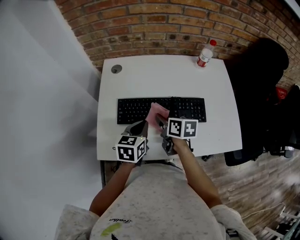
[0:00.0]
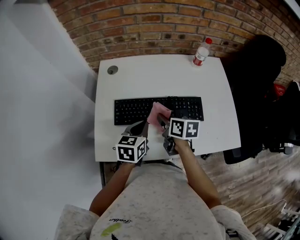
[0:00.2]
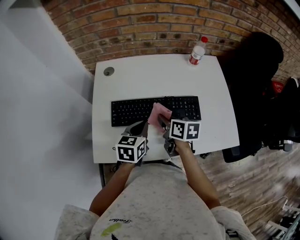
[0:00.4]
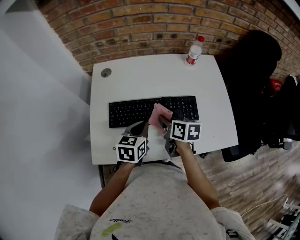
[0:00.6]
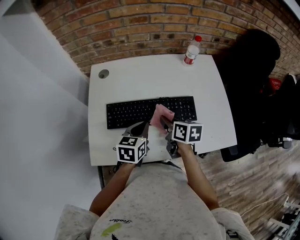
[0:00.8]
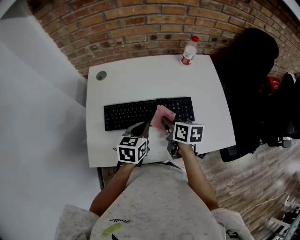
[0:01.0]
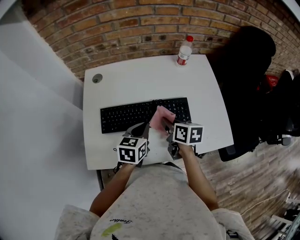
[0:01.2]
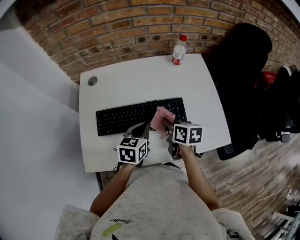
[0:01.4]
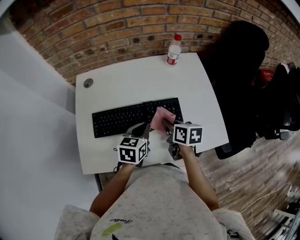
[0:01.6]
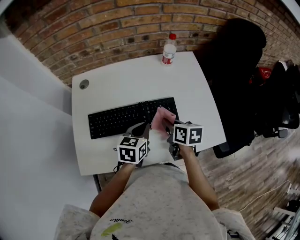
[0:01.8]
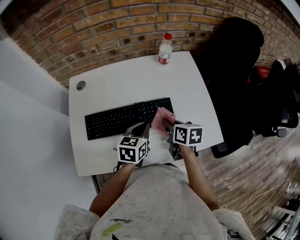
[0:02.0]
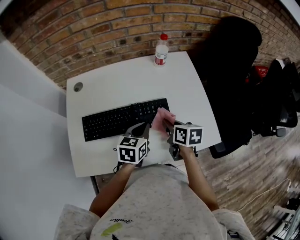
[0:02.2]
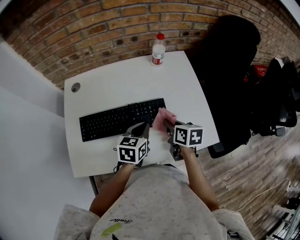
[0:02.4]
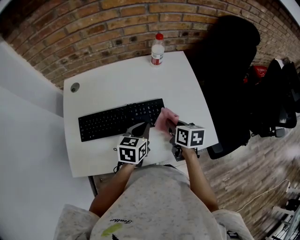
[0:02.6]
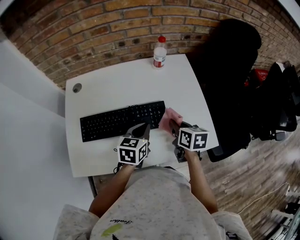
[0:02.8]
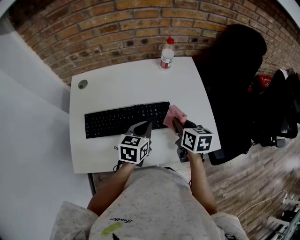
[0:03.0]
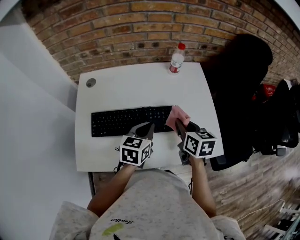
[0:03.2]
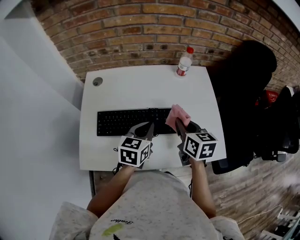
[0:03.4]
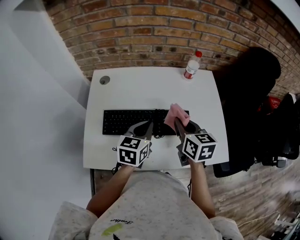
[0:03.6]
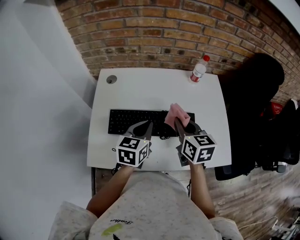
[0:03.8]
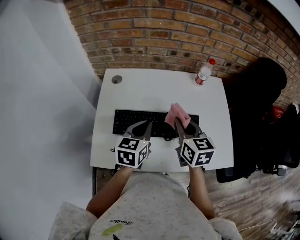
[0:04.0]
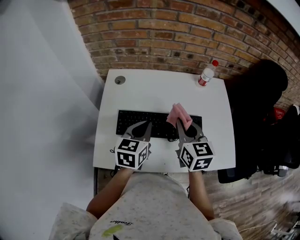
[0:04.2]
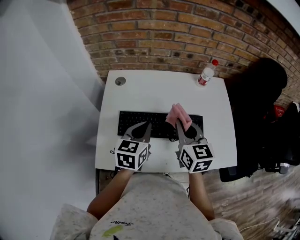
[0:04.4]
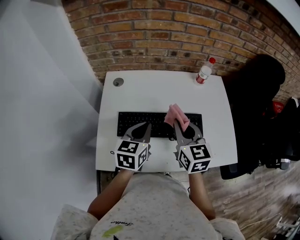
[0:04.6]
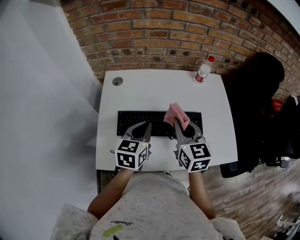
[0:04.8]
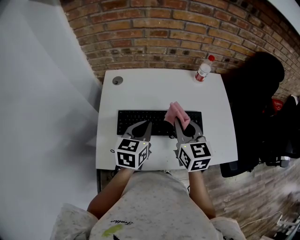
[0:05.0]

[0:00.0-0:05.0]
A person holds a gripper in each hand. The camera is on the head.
0:00.0 to 0:01.6: Both grippers move to the right, approximately 15 cm.
0:01.6 to 0:03.4: The right gripper heads upward, covering some 10 cm, and goes to the right and returns, about 10 cm each way, while the left gripper travels to the right and back again, approximately 10 cm each way.
0:03.4 to 0:05.0: The right gripper goes about 15 cm to the left and upward; the left gripper goes some 10 cm to the left.

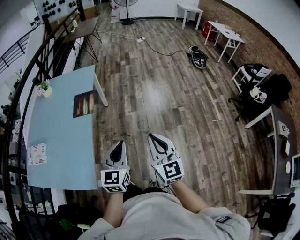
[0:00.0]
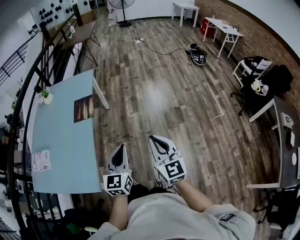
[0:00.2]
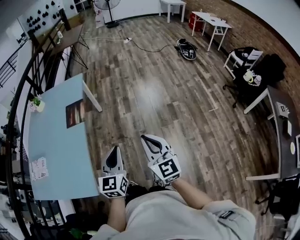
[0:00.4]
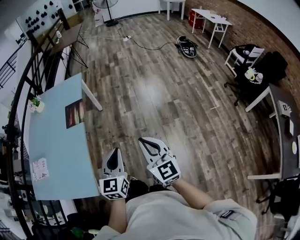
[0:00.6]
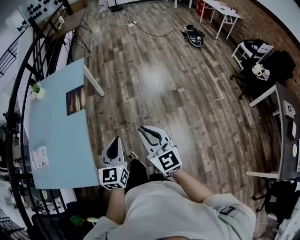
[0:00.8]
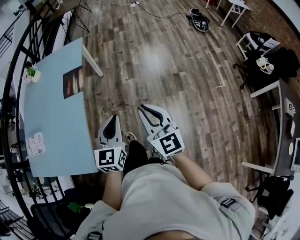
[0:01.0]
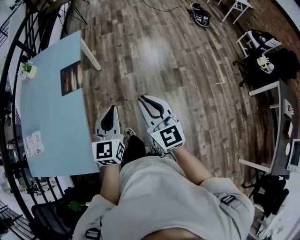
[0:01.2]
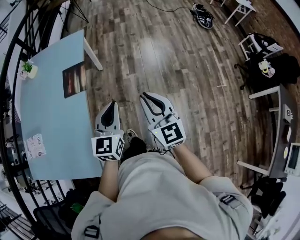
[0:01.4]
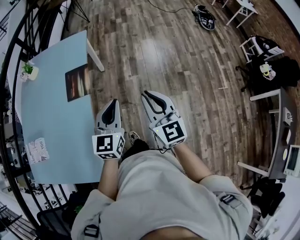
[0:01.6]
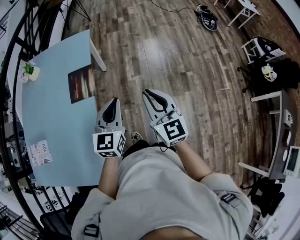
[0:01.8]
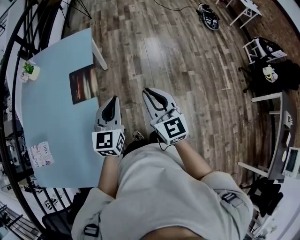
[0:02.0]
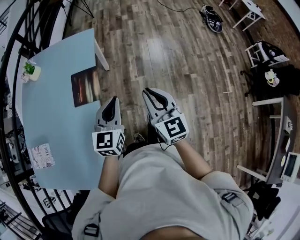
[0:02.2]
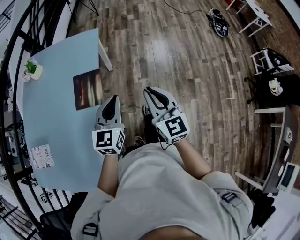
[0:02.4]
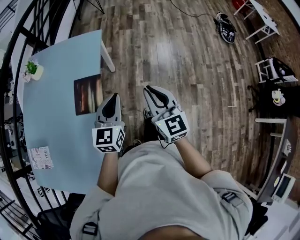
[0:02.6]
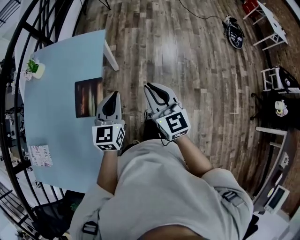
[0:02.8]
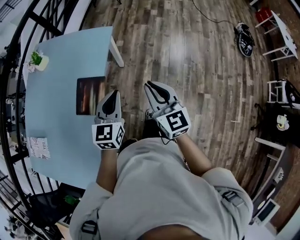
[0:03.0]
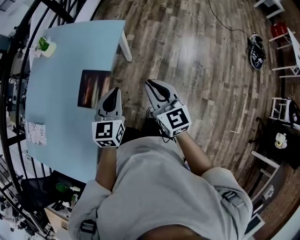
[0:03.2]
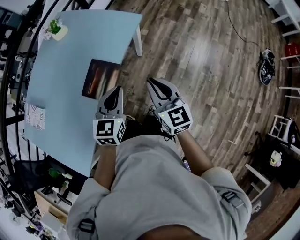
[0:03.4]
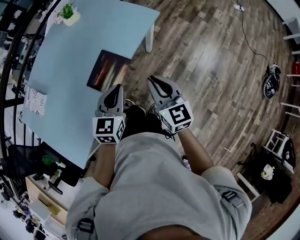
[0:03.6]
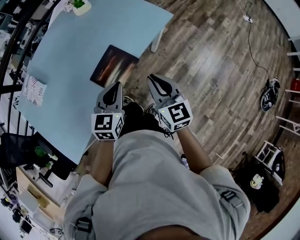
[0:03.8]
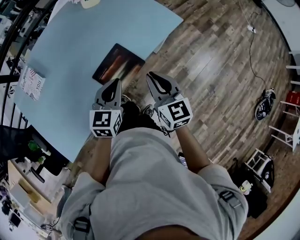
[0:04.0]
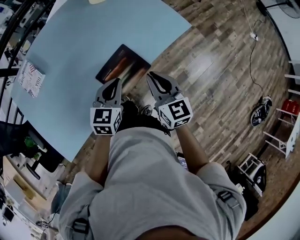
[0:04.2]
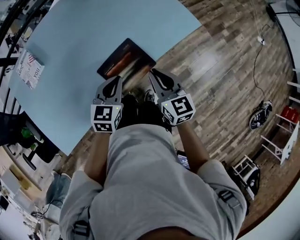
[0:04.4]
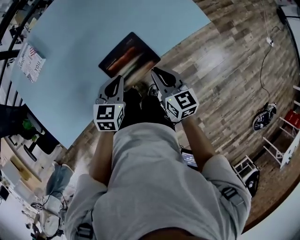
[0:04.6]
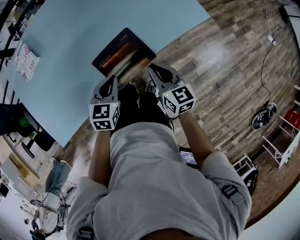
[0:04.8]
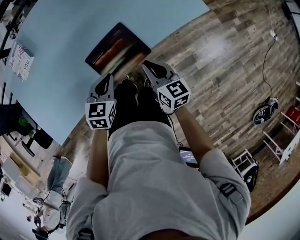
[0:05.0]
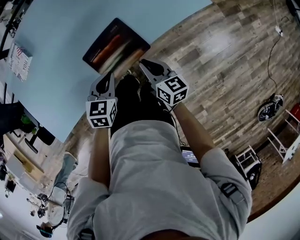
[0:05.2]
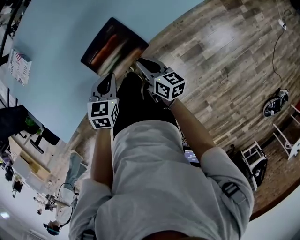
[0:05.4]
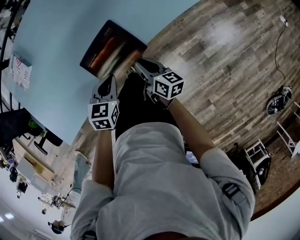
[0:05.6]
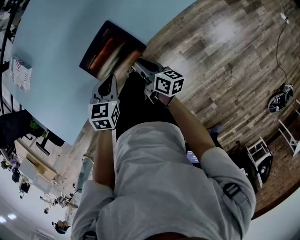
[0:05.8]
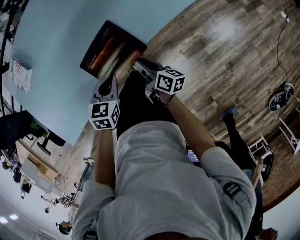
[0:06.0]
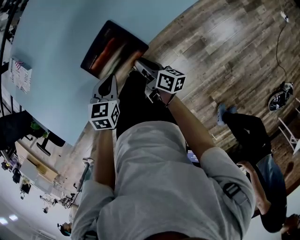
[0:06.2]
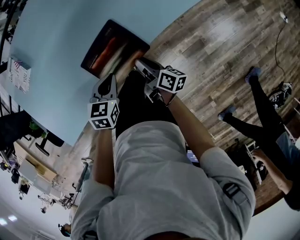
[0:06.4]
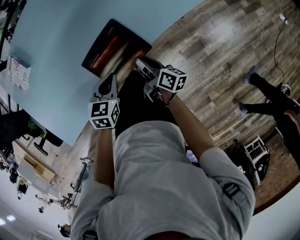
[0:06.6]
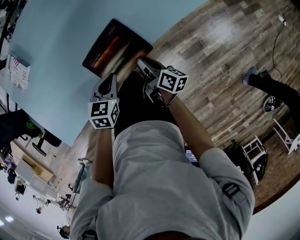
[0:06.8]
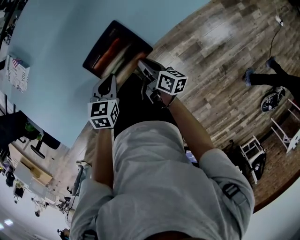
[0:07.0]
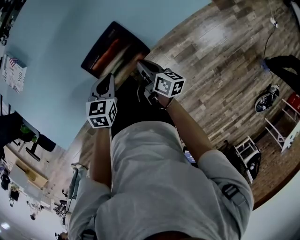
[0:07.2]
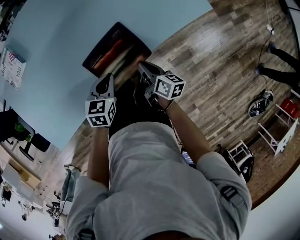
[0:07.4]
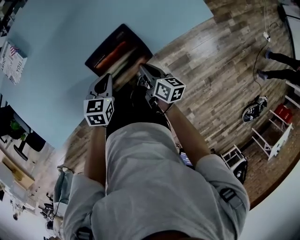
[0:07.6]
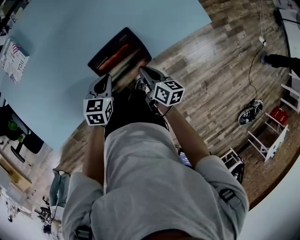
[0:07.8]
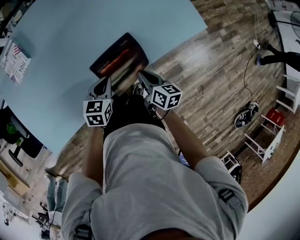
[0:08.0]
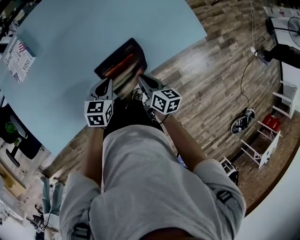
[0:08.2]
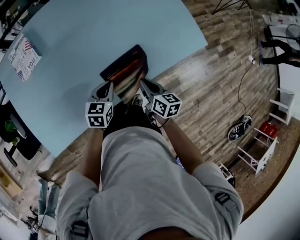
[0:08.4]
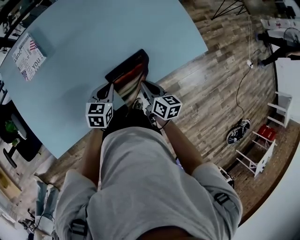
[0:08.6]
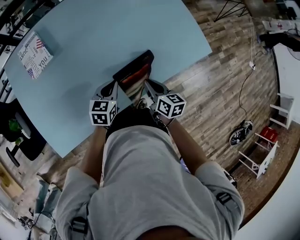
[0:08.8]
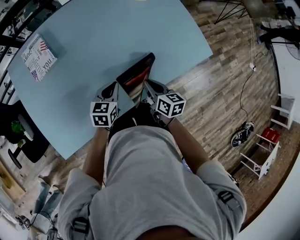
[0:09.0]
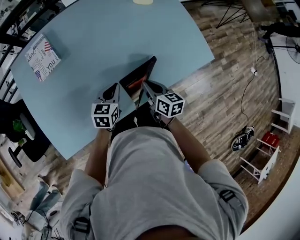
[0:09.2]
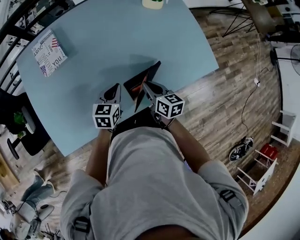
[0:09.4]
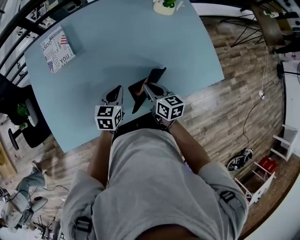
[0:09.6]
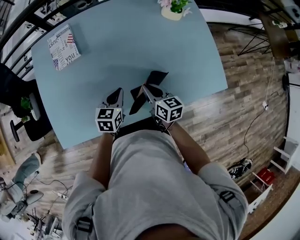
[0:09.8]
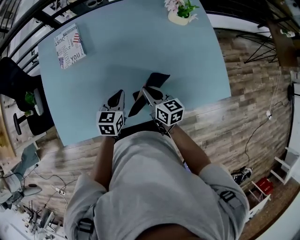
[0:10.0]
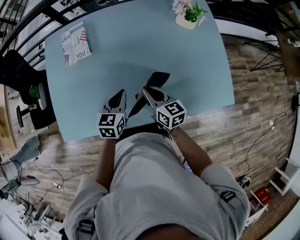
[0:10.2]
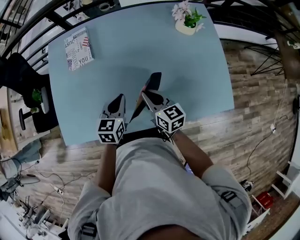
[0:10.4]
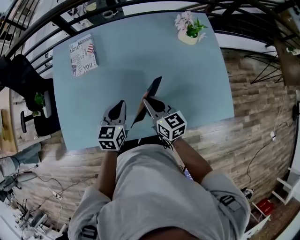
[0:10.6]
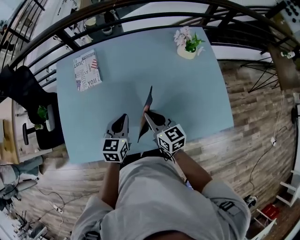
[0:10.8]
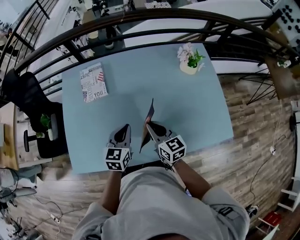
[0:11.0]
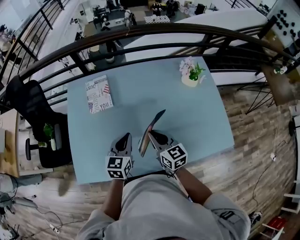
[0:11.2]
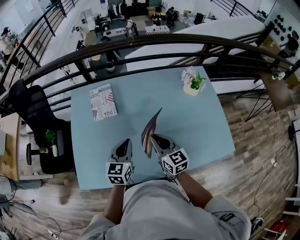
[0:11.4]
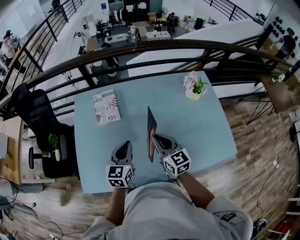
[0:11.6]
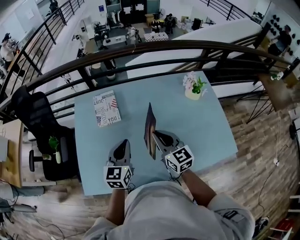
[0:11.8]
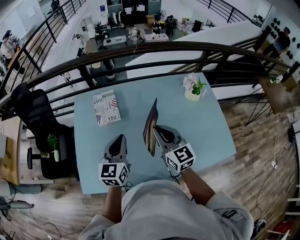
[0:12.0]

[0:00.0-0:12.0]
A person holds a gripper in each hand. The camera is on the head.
0:00.0 to 0:01.6: Both grippers travel together forward, roughly 20 cm.
0:01.6 to 0:03.0: The grippers both shift forward by about 30 cm.
0:03.0 to 0:04.4: The right gripper shifts by approximately 25 cm, and changes its angle by about 40 degrees; the left gripper ends up roughly 25 cm from where it was, and rotates about 40 degrees.
0:04.4 to 0:06.0: The left gripper moves downward, about 10 cm; the right gripper goes about 20 cm downward, and rolls clockwise, seen from behind, by approximately 50 degrees.
0:06.0 to 0:07.6: The grippers move only a little.
0:07.6 to 0:09.0: The right gripper is displaced to the left and upward by some 15 cm, while the left gripper heads to the left, upward and forward, covering about 10 cm.
0:09.0 to 0:10.4: The left gripper travels upward by about 10 cm, and swivels about 30 degrees. Meanwhile the right gripper shifts by some 15 cm, and changes its angle by some 40 degrees.
0:10.4 to 0:12.0: The two grippers go approximately 20 cm upward and to the left. The right gripper turns by about 30 degrees. Meanwhile the left gripper swivels some 20 degrees.

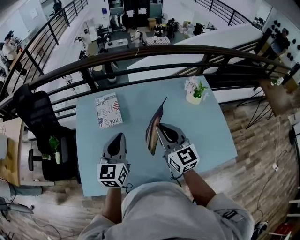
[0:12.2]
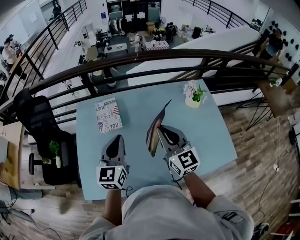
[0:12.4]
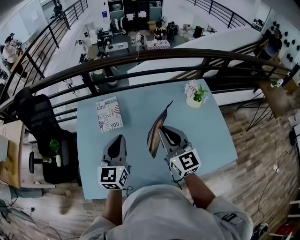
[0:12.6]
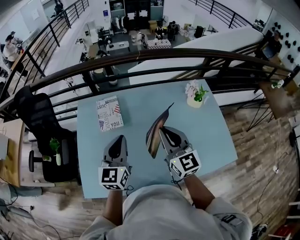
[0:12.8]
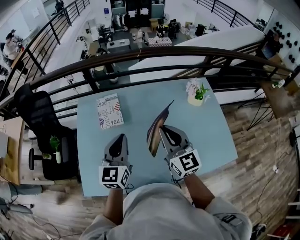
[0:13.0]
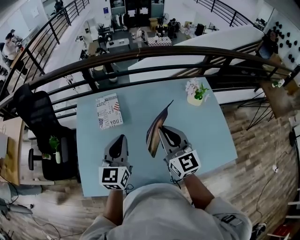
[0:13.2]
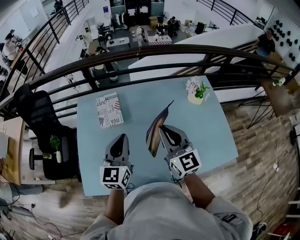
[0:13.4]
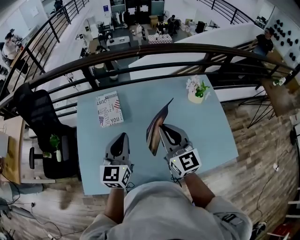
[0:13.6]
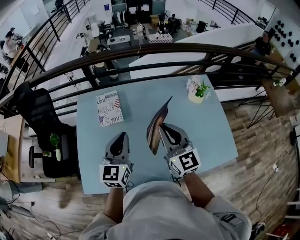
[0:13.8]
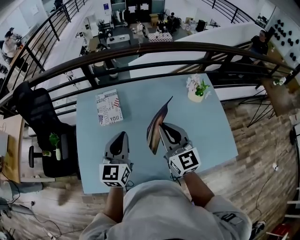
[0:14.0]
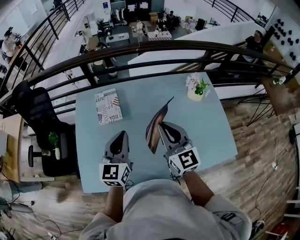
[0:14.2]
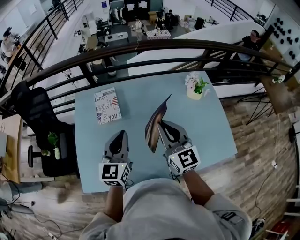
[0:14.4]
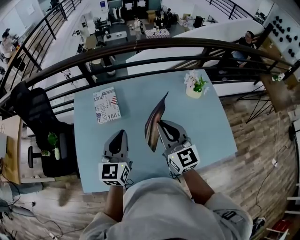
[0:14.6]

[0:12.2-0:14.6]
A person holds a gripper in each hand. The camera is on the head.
0:12.2 to 0:13.4: The grippers stay close to where they were, moving slightly.
0:13.4 to 0:14.6: Both grippers stay about where they are.

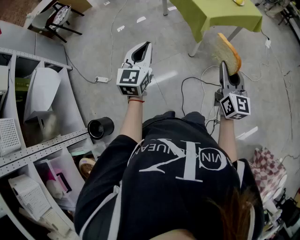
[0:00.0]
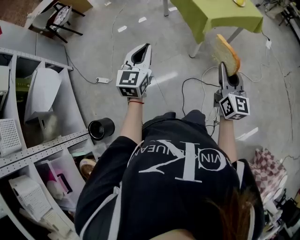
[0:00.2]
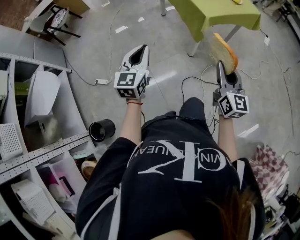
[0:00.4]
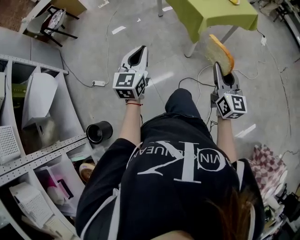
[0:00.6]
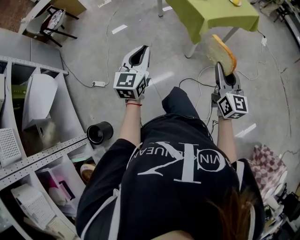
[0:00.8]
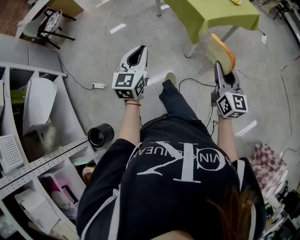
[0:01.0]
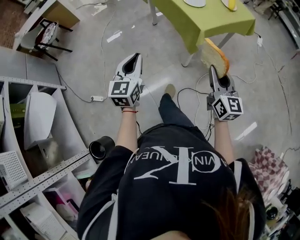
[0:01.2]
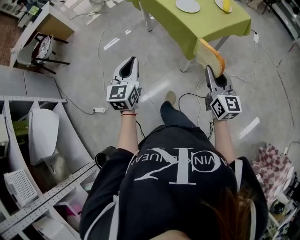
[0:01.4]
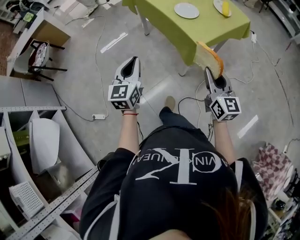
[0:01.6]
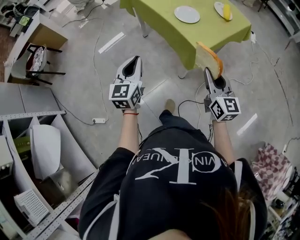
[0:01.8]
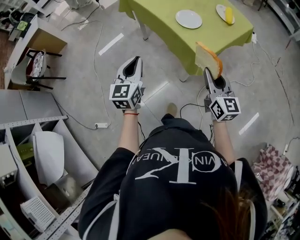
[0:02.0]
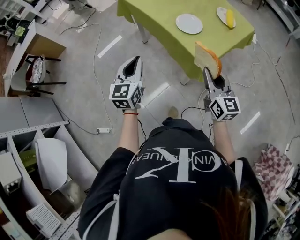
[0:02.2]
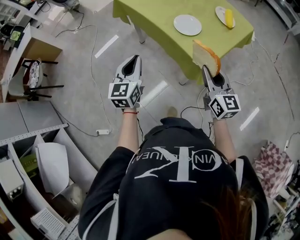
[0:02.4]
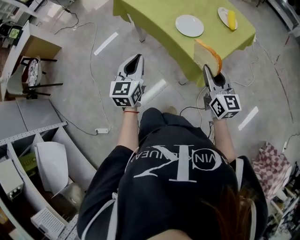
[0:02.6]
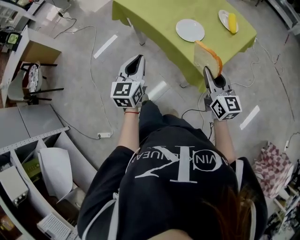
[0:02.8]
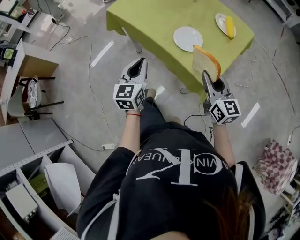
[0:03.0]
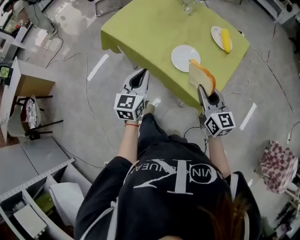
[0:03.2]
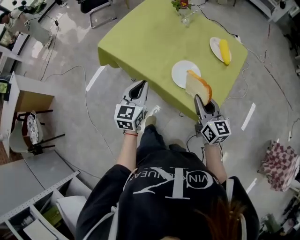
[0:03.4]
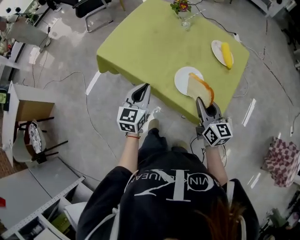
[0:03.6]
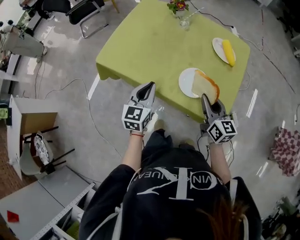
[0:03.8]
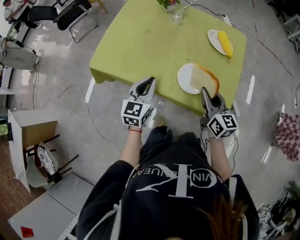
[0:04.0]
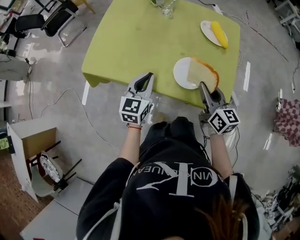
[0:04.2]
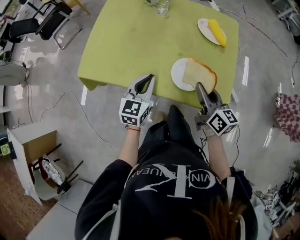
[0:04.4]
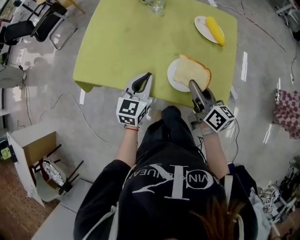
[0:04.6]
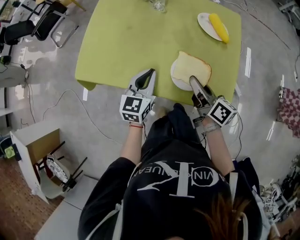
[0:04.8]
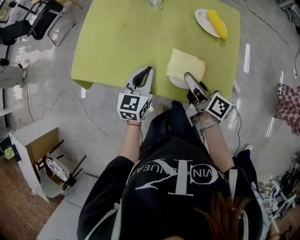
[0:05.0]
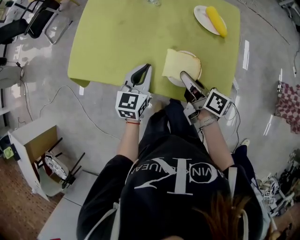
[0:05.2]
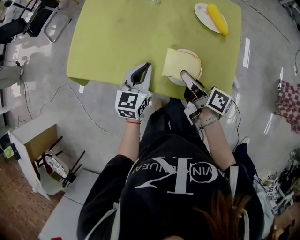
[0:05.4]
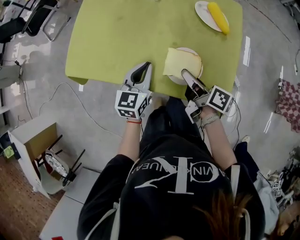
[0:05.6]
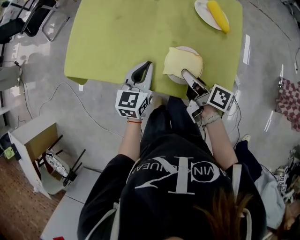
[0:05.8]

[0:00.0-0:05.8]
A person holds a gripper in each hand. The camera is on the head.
0:00.0 to 0:01.4: Both grippers travel together forward, some 15 cm.
0:01.4 to 0:02.8: The two grippers go some 25 cm forward.
0:02.8 to 0:04.4: The right gripper moves about 20 cm, and turns by some 40 degrees. Meanwhile the left gripper ends up approximately 30 cm from where it was, and changes its angle by roughly 40 degrees.
0:04.4 to 0:05.8: The left gripper changes place by about 5 cm, while the right gripper moves downward, roughly 5 cm, and swivels about 40 degrees.
